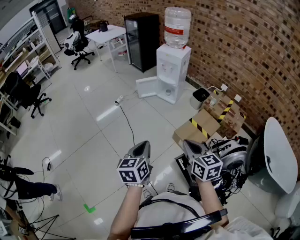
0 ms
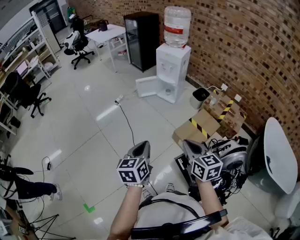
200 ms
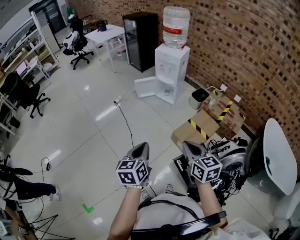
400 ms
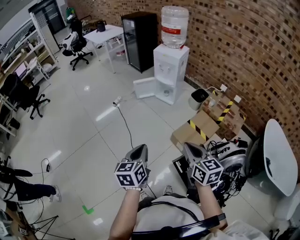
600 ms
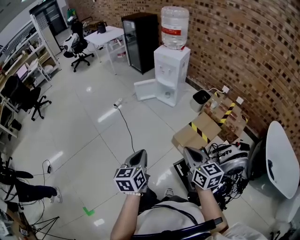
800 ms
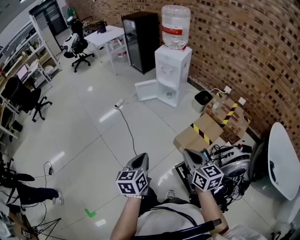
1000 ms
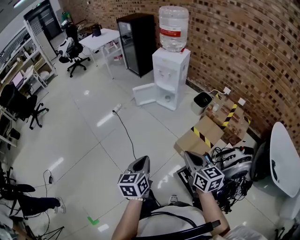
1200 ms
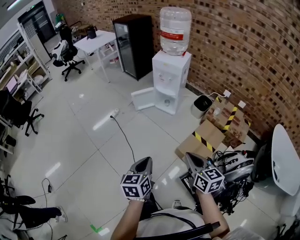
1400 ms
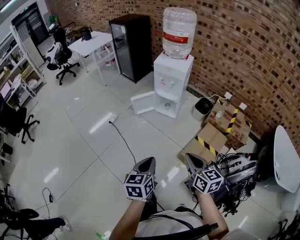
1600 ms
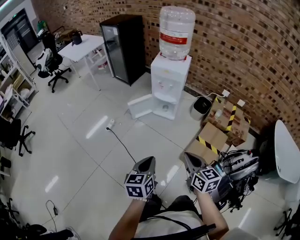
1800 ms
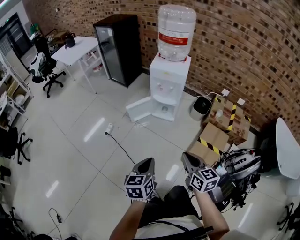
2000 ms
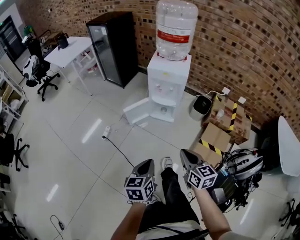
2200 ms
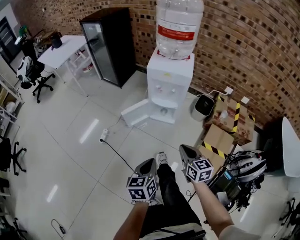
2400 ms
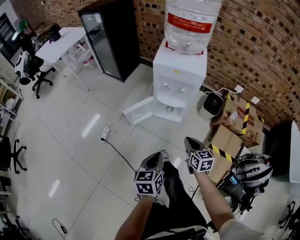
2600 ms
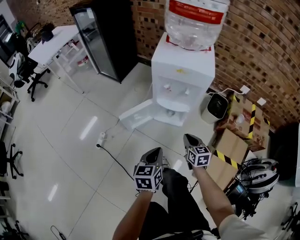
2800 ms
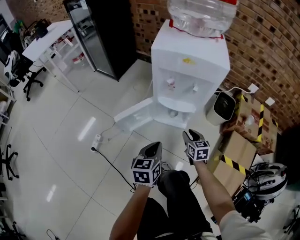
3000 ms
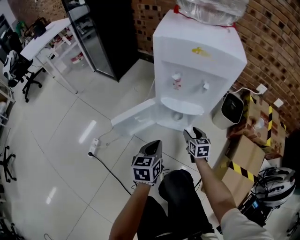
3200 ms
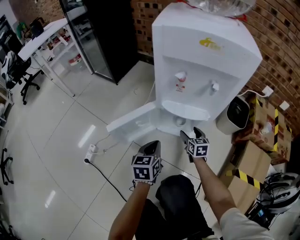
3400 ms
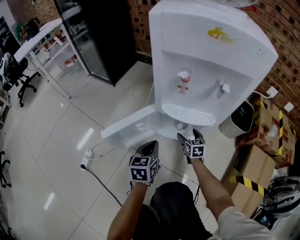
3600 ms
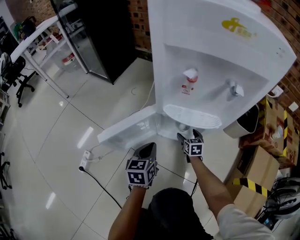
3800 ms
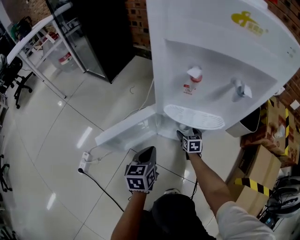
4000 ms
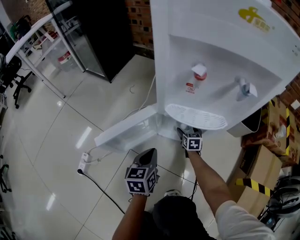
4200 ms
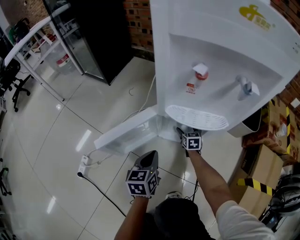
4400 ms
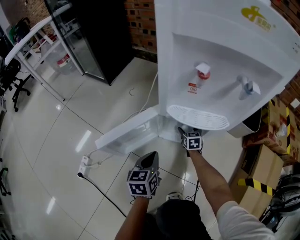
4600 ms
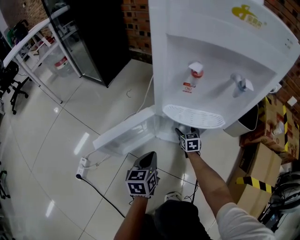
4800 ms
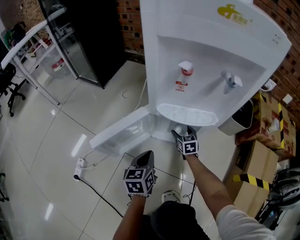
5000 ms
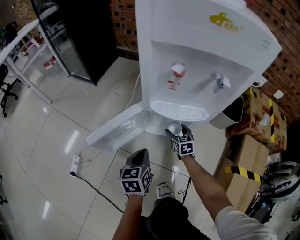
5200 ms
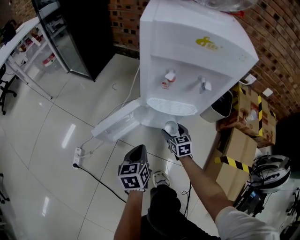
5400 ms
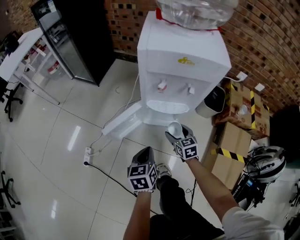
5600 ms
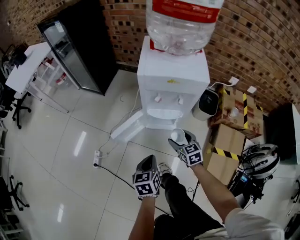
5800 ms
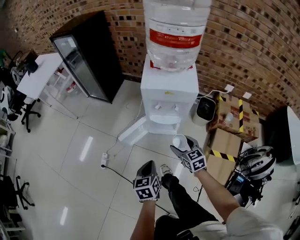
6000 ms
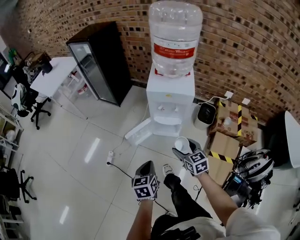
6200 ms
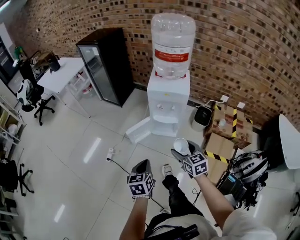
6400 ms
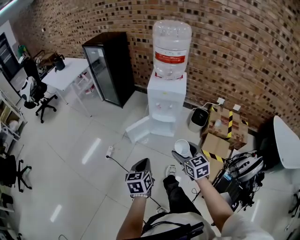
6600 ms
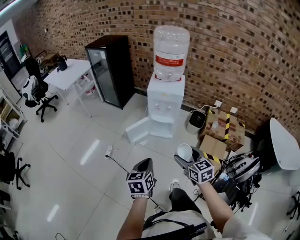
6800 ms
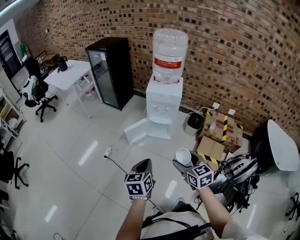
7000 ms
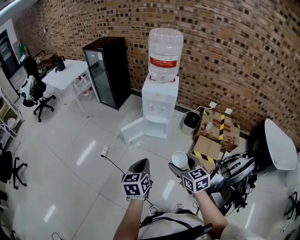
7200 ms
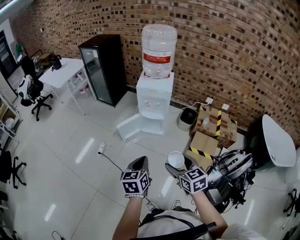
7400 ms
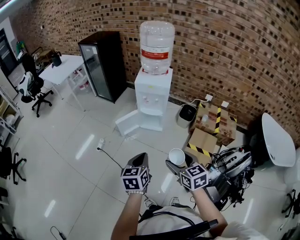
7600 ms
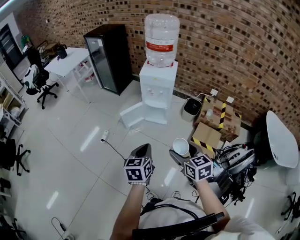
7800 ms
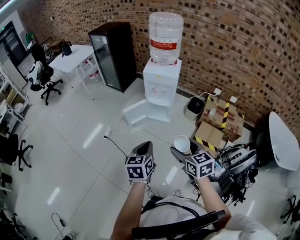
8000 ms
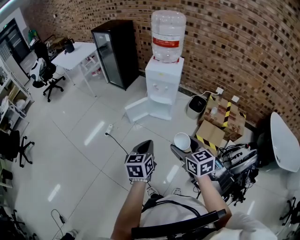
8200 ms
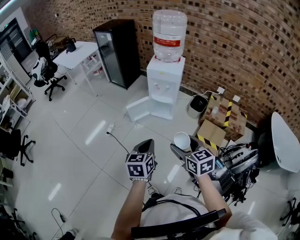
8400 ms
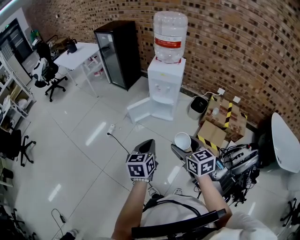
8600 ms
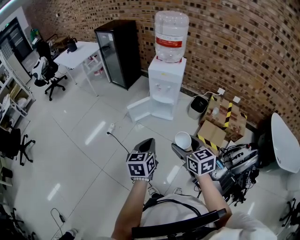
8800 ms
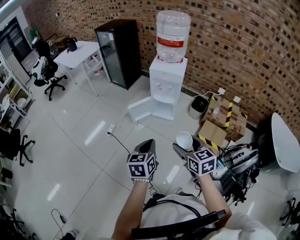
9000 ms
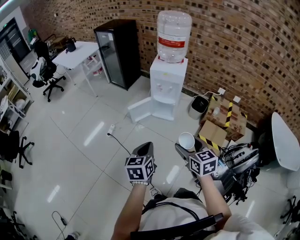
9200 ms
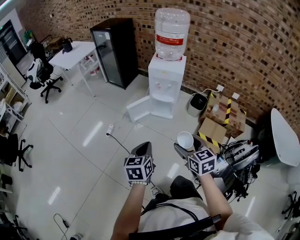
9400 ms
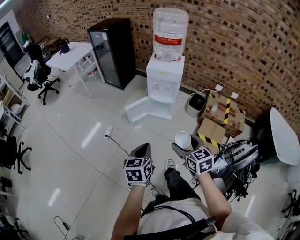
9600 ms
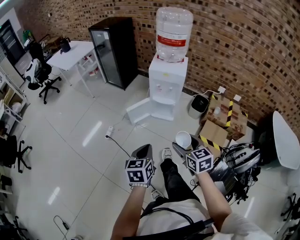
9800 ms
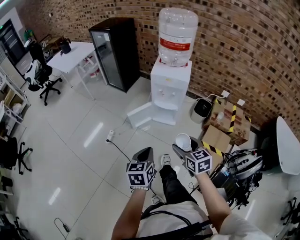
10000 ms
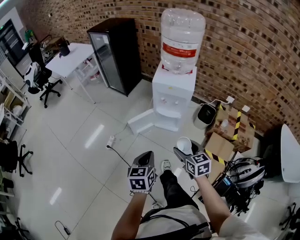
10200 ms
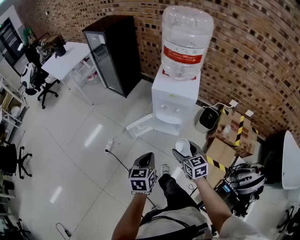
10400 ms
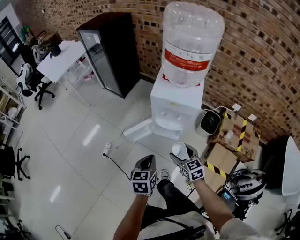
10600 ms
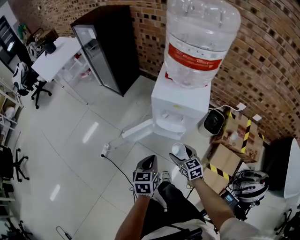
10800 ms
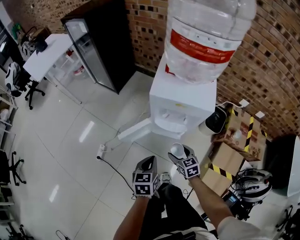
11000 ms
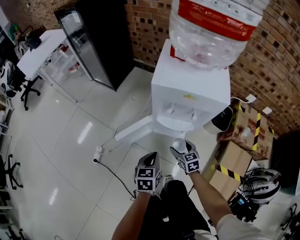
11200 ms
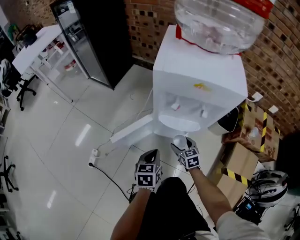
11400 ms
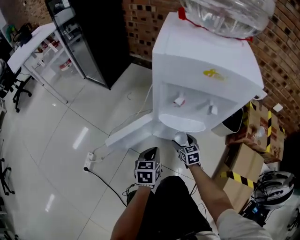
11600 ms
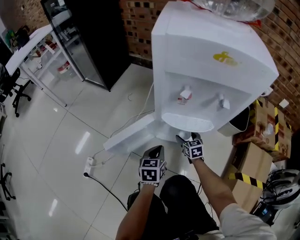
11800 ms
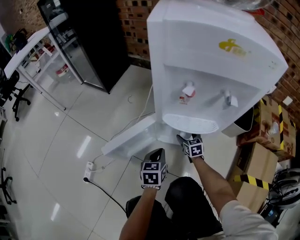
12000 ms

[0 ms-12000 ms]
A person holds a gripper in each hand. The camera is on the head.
0 ms to 1600 ms: The two grippers go approximately 20 cm forward.
1600 ms to 3000 ms: Both grippers are carried forward, some 50 cm. Both grippers move downward, approximately 40 cm. The right gripper rotates roughly 20 degrees.
3000 ms to 4400 ms: The two grippers go about 35 cm downward and forward. The right gripper opens.
4400 ms to 6000 ms: Both grippers travel together upward and backward, some 50 cm.
6000 ms to 7600 ms: The grippers both shift backward and upward by about 40 cm.
7600 ms to 9000 ms: The grippers move only a little.
9000 ms to 10400 ms: The right gripper goes some 30 cm forward and downward, while the left gripper heads forward, covering about 25 cm.
10400 ms to 12000 ms: Both grippers travel together downward and forward, roughly 60 cm.

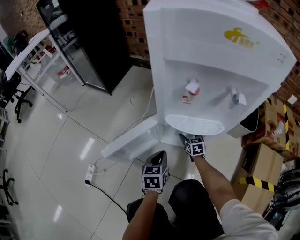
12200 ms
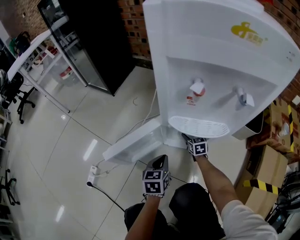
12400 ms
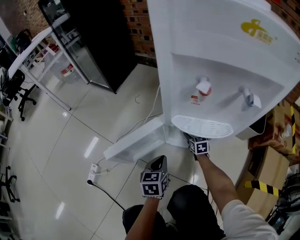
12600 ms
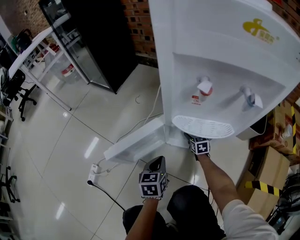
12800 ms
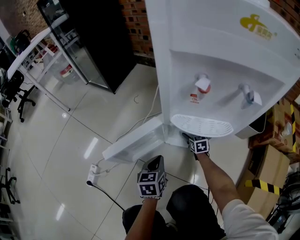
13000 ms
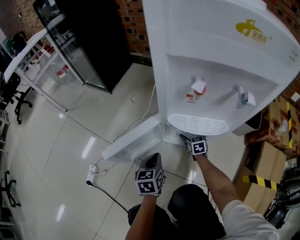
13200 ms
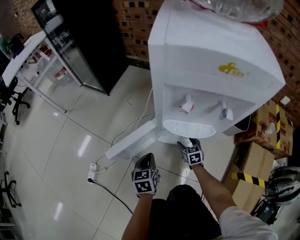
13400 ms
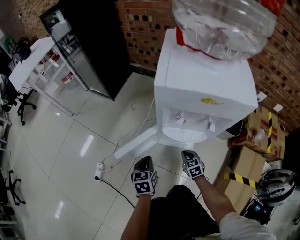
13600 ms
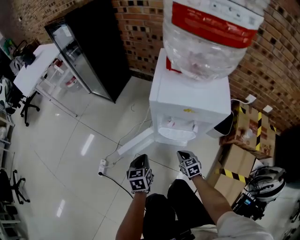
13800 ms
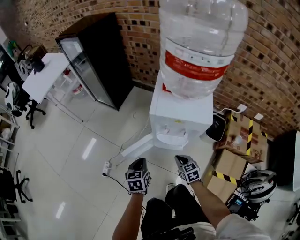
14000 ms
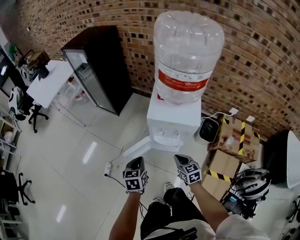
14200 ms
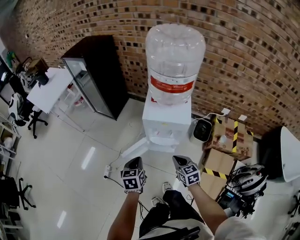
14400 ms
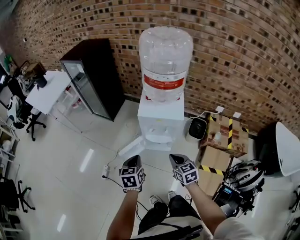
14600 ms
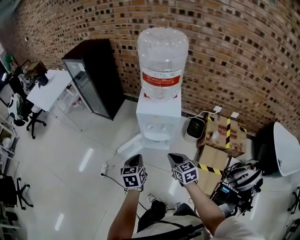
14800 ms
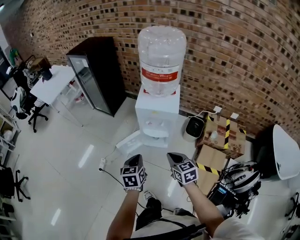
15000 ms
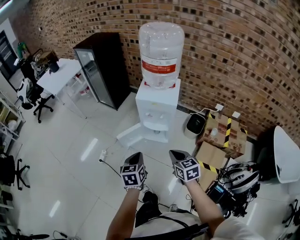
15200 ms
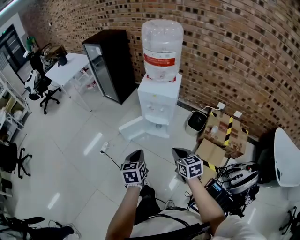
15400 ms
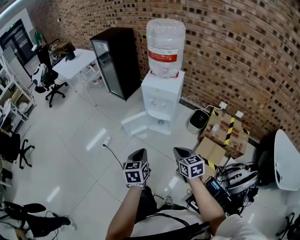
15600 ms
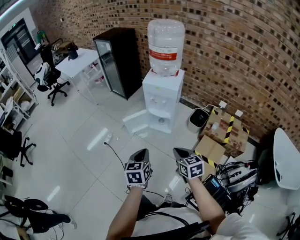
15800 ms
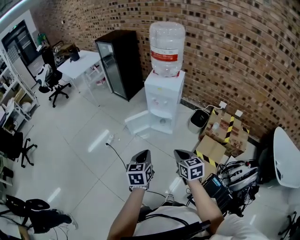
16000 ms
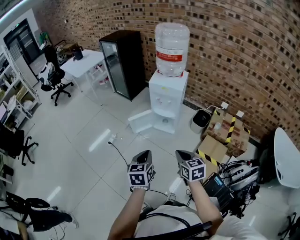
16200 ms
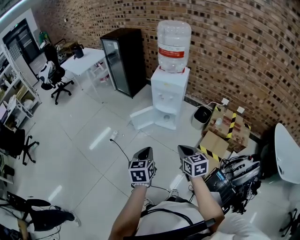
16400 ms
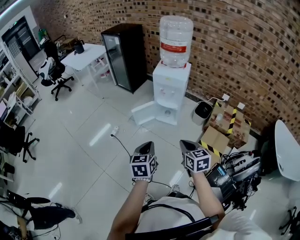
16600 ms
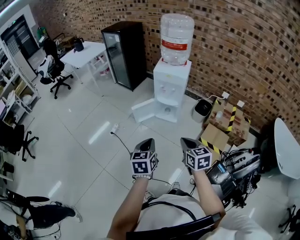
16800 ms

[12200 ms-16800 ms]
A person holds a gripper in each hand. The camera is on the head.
12200 ms to 13800 ms: The right gripper heads upward and backward, covering roughly 30 cm, and closes up. The left gripper travels upward by approximately 25 cm.
13800 ms to 15200 ms: Both grippers move upward and backward, approximately 40 cm.
15200 ms to 16800 ms: The two grippers go some 20 cm backward.

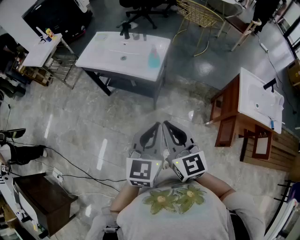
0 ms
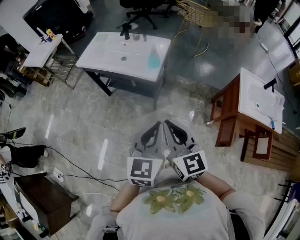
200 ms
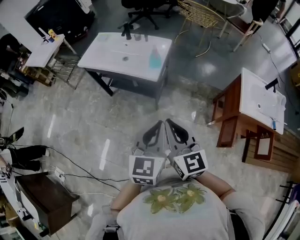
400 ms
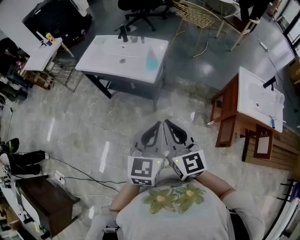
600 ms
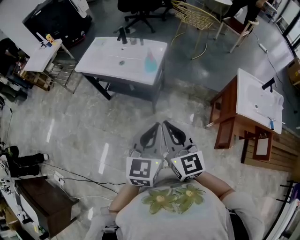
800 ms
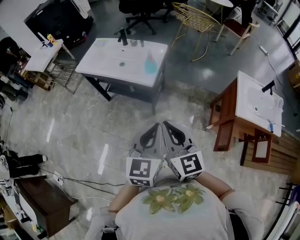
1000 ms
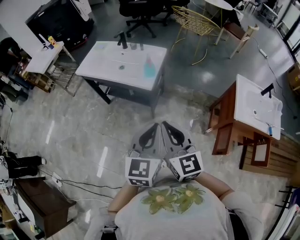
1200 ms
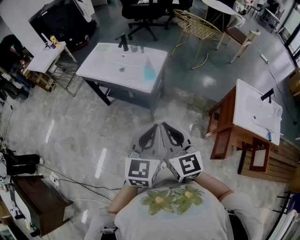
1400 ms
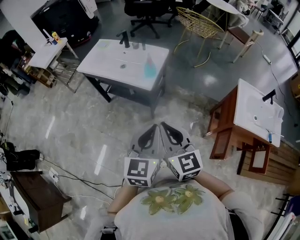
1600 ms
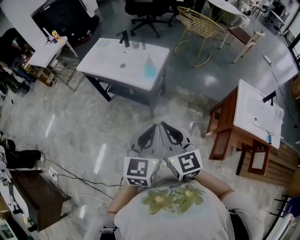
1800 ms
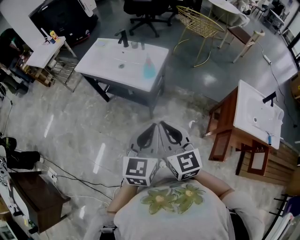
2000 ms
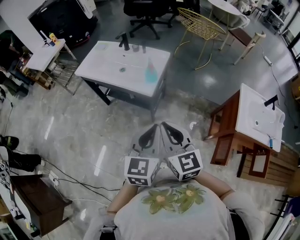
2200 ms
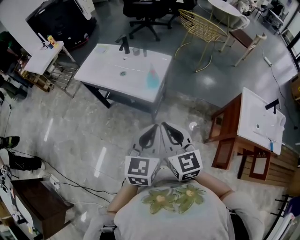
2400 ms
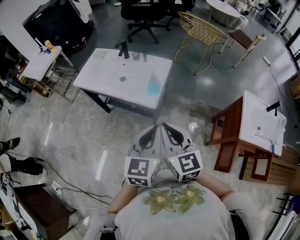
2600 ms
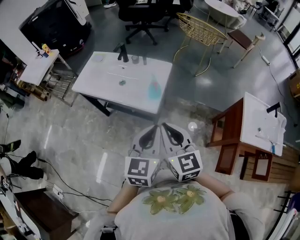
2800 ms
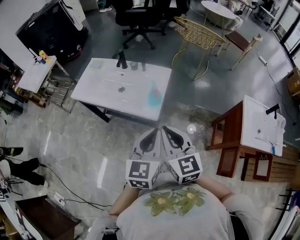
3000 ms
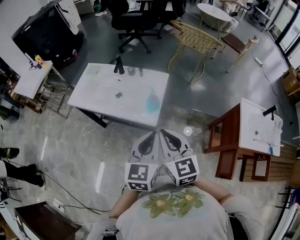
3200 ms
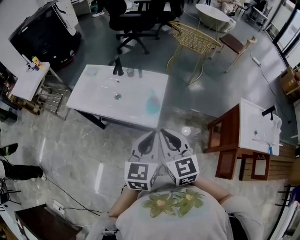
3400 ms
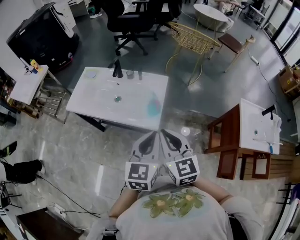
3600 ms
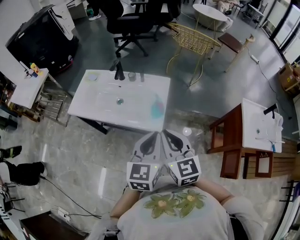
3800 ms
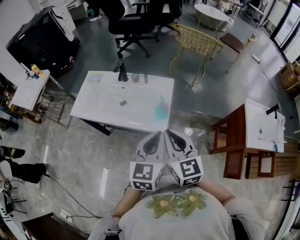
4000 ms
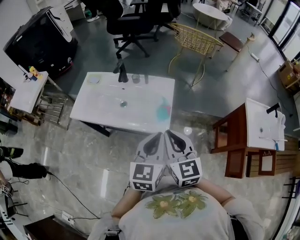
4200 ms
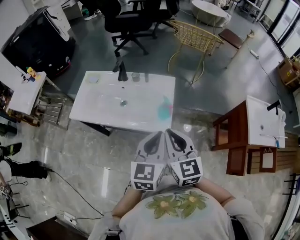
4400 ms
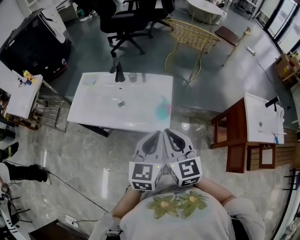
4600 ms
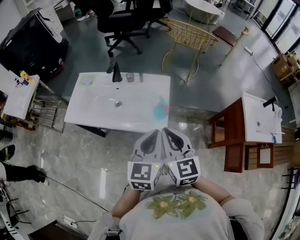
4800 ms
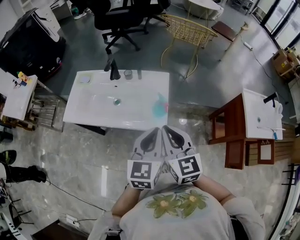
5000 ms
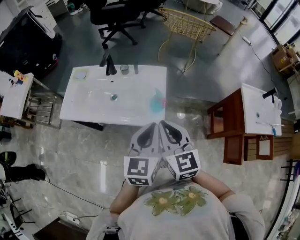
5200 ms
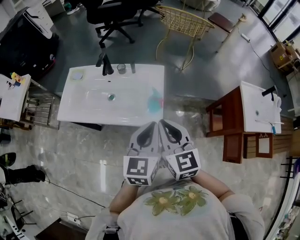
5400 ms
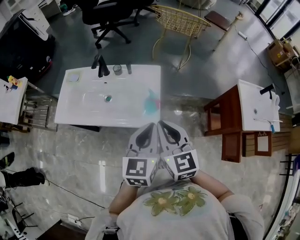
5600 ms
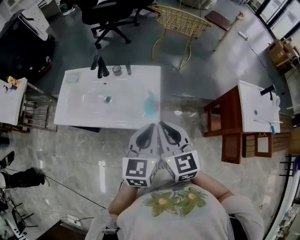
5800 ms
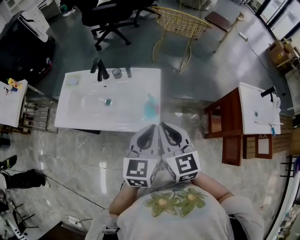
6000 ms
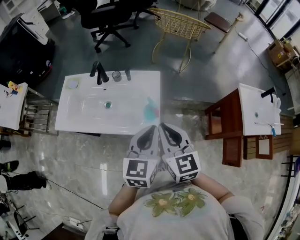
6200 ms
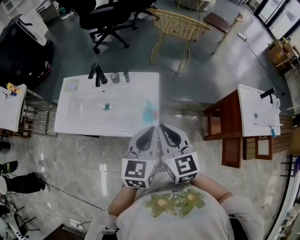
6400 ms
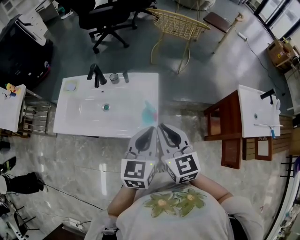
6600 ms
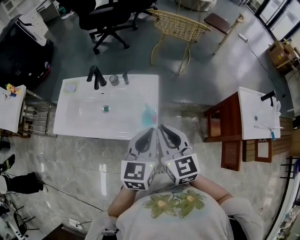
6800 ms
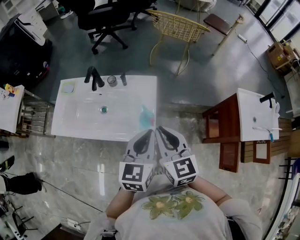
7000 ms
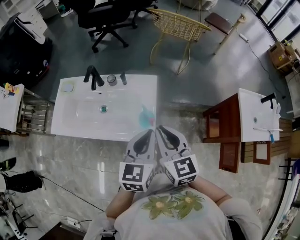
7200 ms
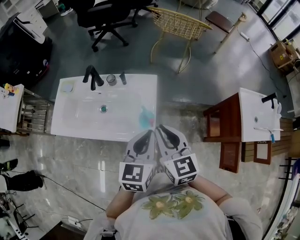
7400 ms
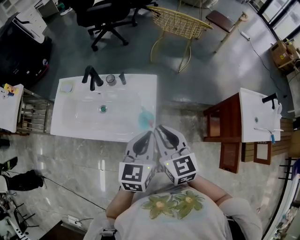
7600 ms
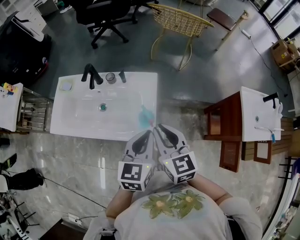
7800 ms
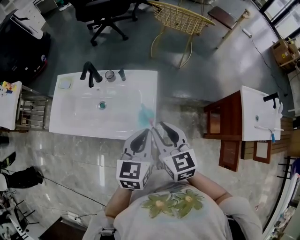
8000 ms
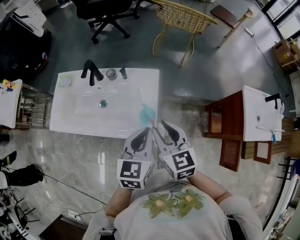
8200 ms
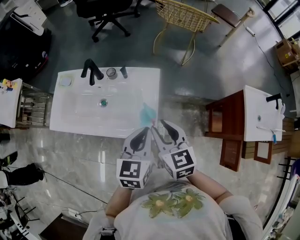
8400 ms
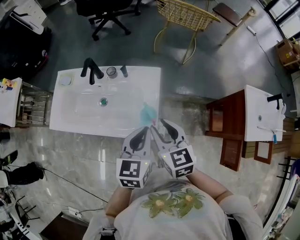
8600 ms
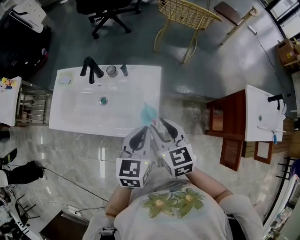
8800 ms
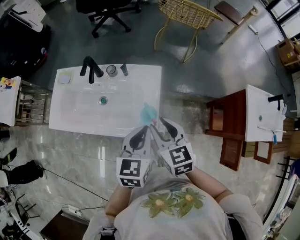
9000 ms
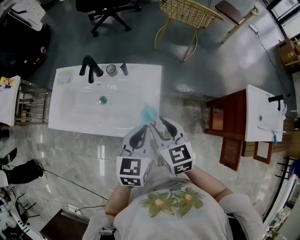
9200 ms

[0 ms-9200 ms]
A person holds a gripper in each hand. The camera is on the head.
0 ms to 1600 ms: The right gripper moves roughly 5 cm.
1600 ms to 3000 ms: Both grippers travel together forward, some 20 cm.
3000 ms to 4600 ms: Both grippers move forward and to the left, some 10 cm.
4600 ms to 6200 ms: Both grippers move forward, about 5 cm.
6200 ms to 7600 ms: There are only small adjustments of the grippers.
7600 ms to 9200 ms: The right gripper moves downward, about 5 cm, and opens.
